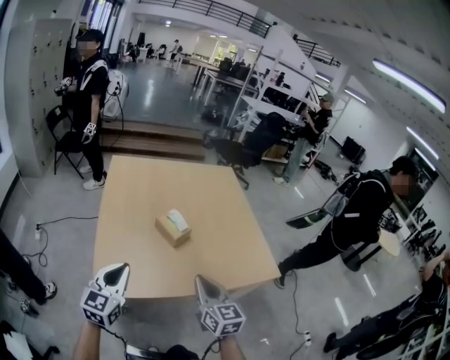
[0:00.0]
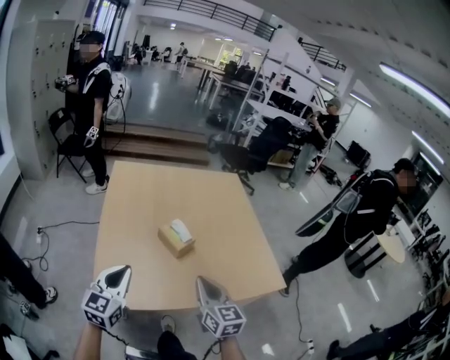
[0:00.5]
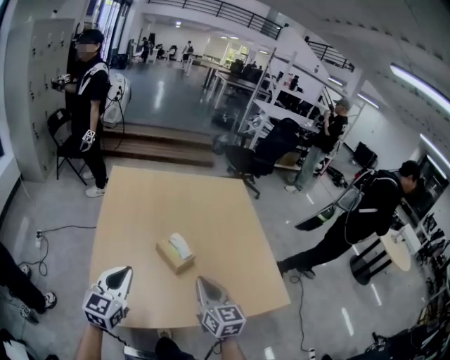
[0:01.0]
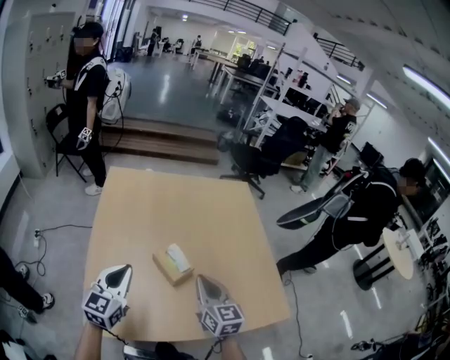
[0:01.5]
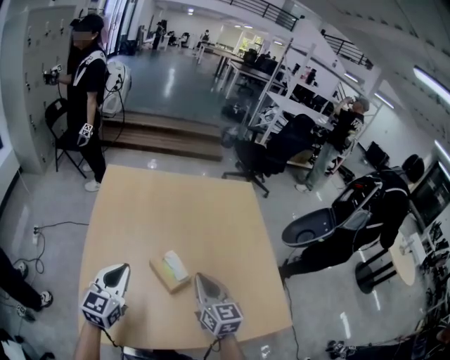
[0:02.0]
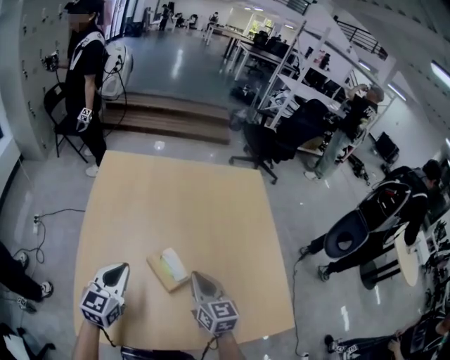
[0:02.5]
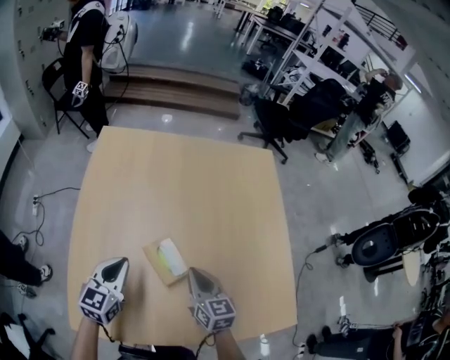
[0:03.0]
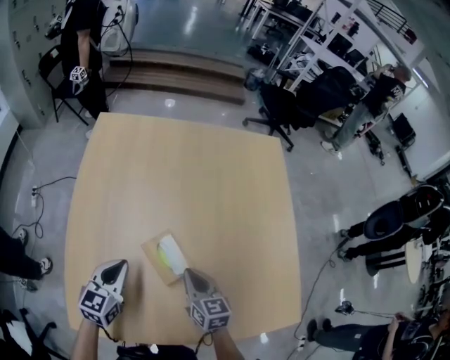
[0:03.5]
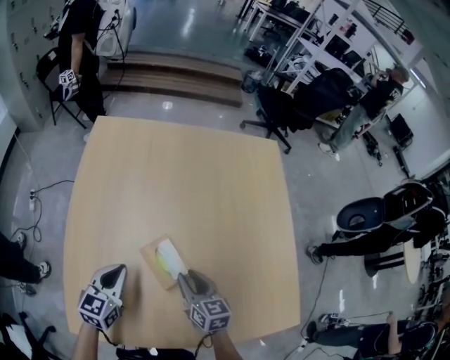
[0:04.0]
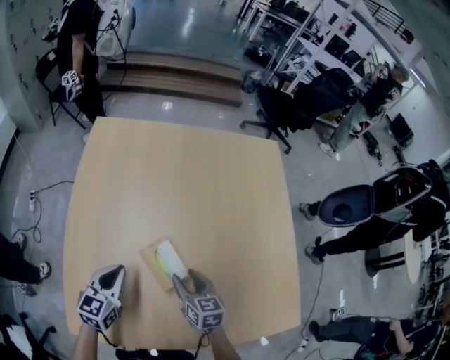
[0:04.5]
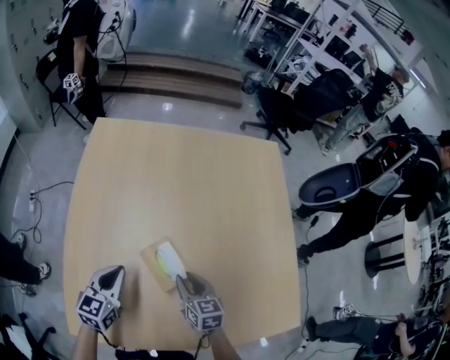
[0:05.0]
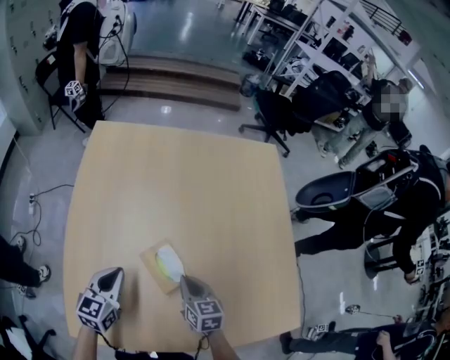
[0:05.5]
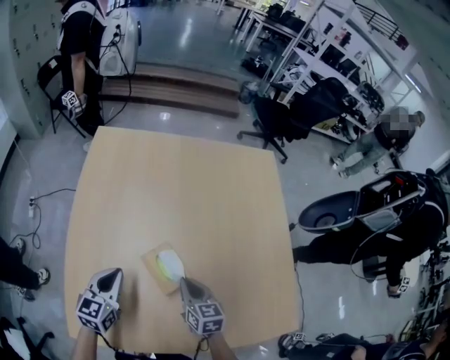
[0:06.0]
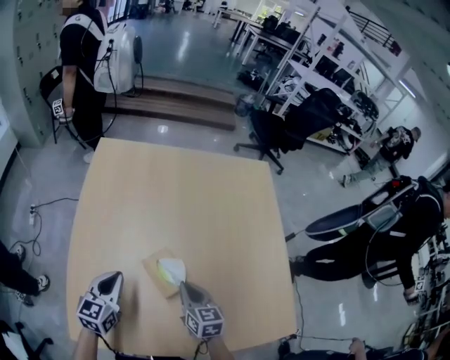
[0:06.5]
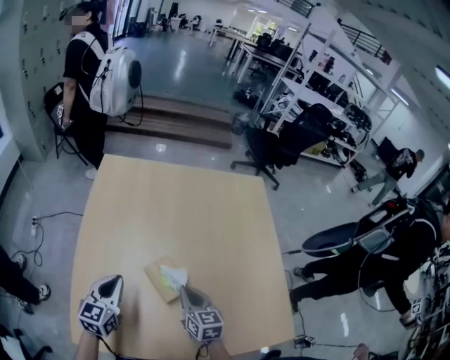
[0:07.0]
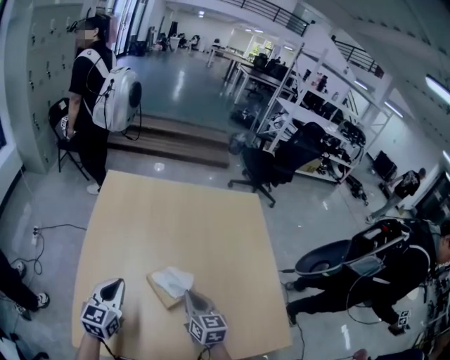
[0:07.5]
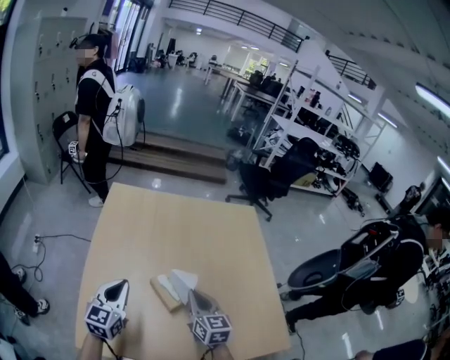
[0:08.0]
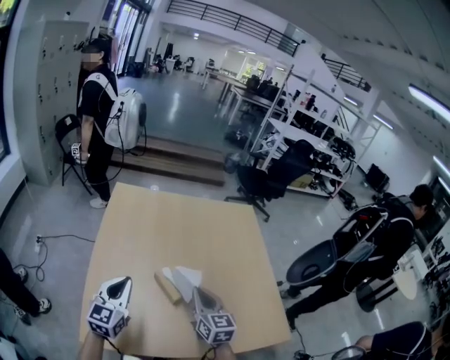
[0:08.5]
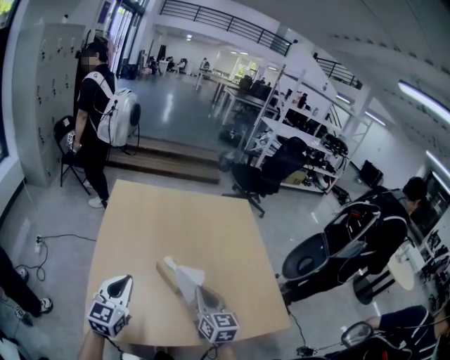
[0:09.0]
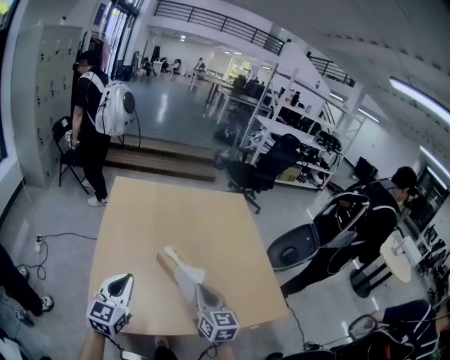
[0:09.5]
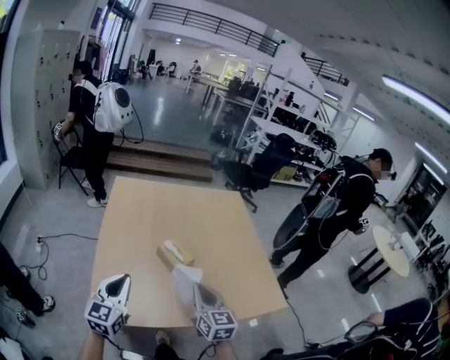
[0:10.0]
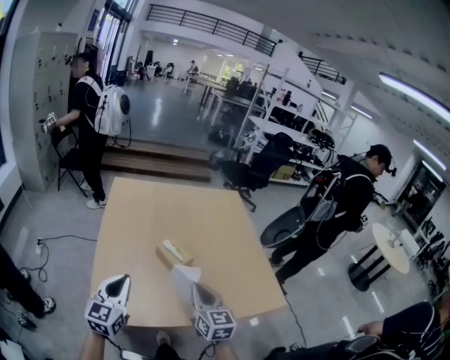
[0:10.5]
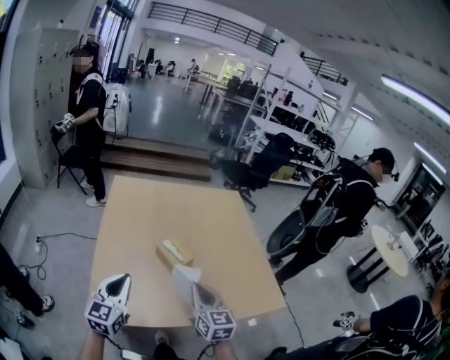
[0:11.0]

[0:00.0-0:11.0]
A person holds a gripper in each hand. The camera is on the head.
0:00.0 to 0:02.0: The grippers both shift forward by about 25 cm.
0:02.0 to 0:03.5: The grippers both shift downward by about 15 cm.
0:03.5 to 0:05.5: The right gripper opens, then closes again.
0:05.5 to 0:07.5: The two grippers go some 10 cm upward.
0:07.5 to 0:09.0: Both grippers travel together backward and upward, some 15 cm.
0:09.0 to 0:11.0: The grippers both shift backward by approximately 10 cm.

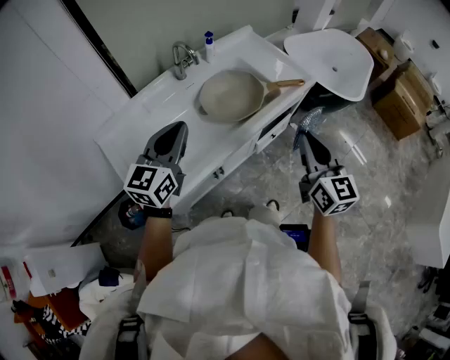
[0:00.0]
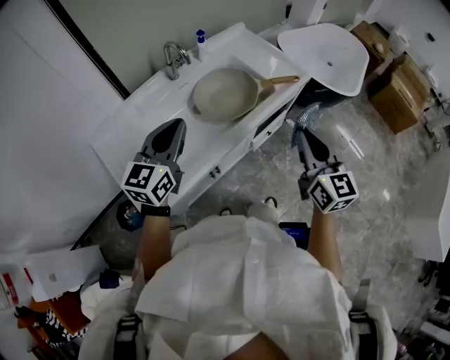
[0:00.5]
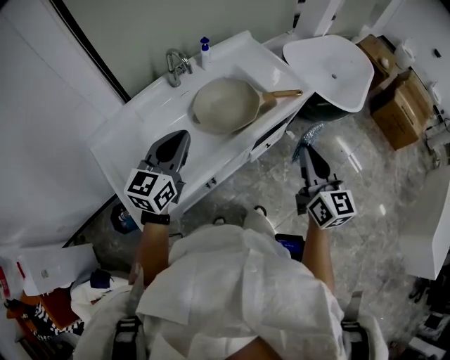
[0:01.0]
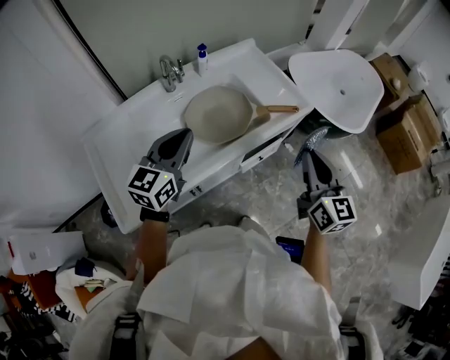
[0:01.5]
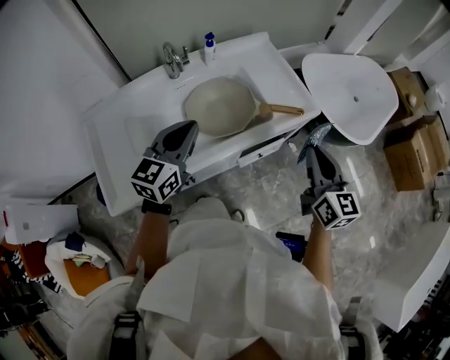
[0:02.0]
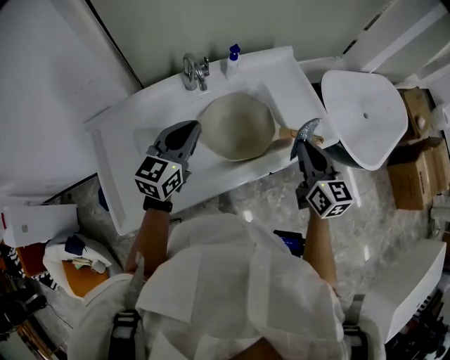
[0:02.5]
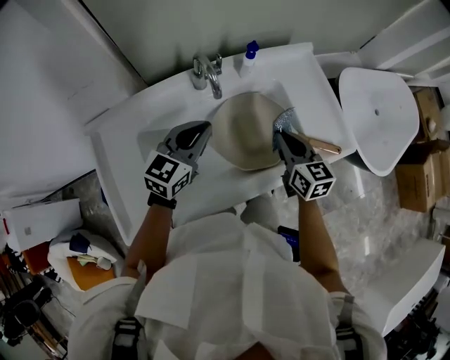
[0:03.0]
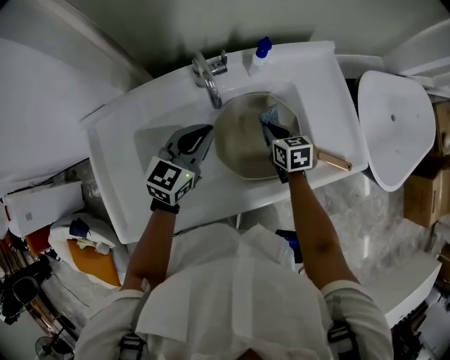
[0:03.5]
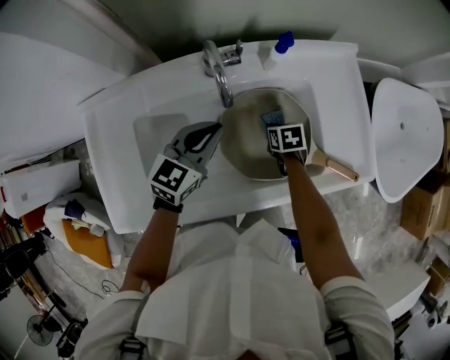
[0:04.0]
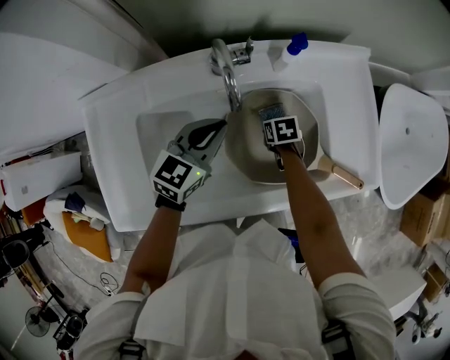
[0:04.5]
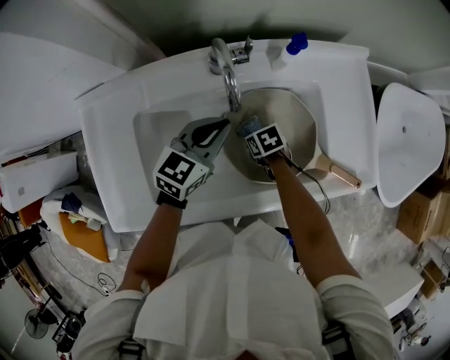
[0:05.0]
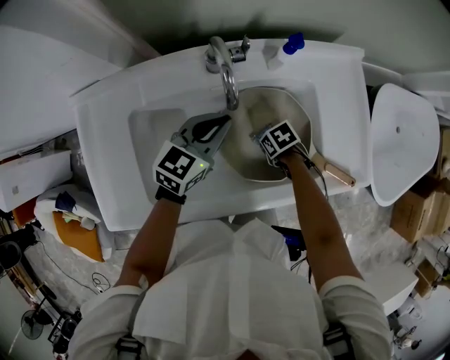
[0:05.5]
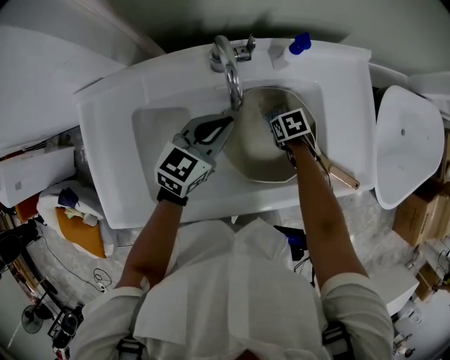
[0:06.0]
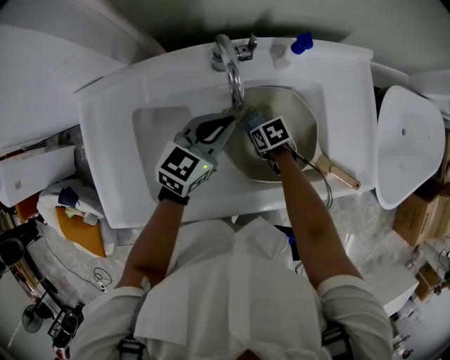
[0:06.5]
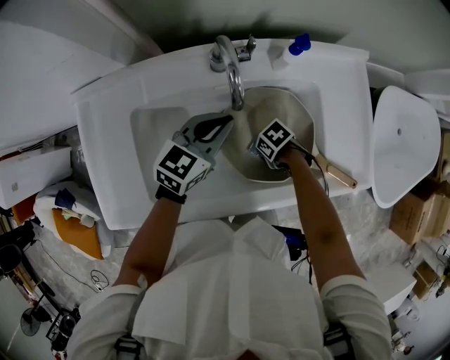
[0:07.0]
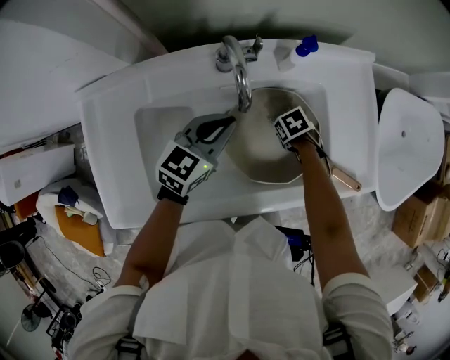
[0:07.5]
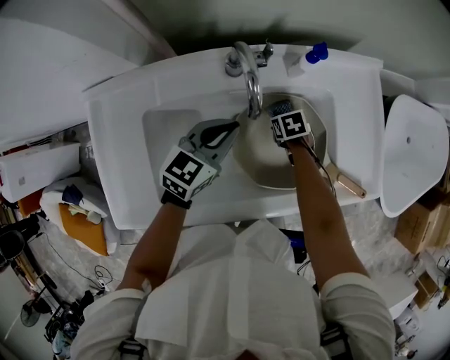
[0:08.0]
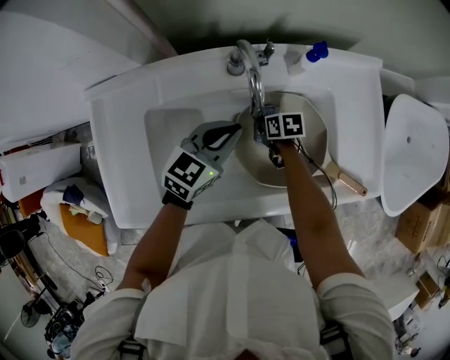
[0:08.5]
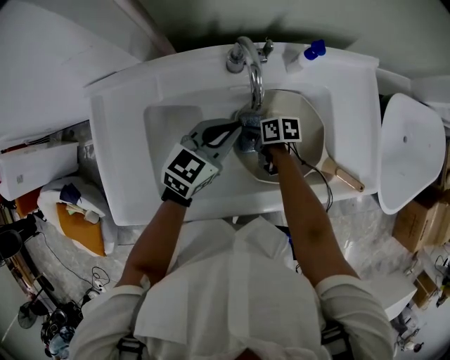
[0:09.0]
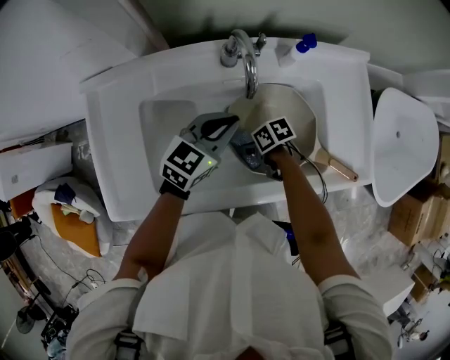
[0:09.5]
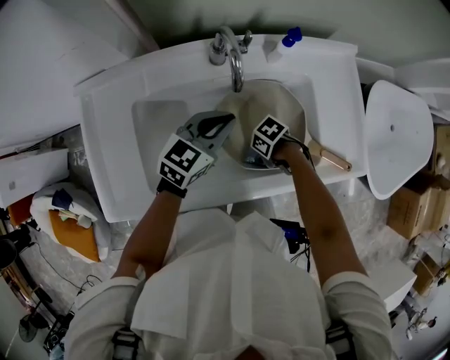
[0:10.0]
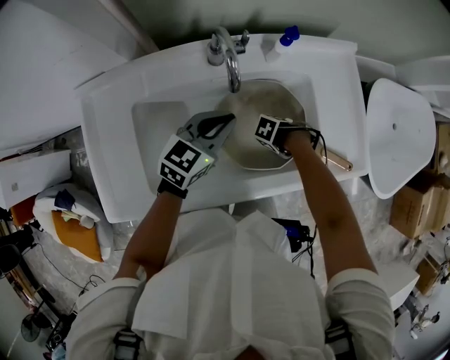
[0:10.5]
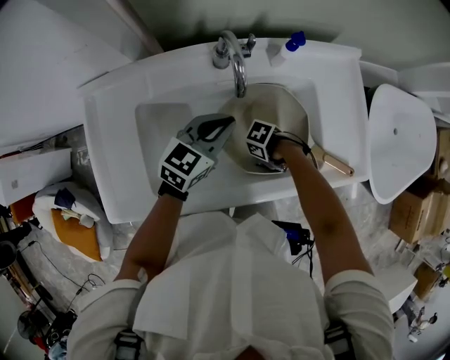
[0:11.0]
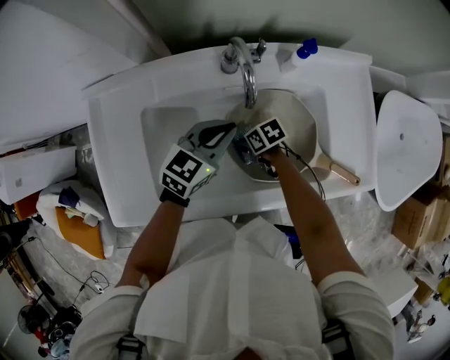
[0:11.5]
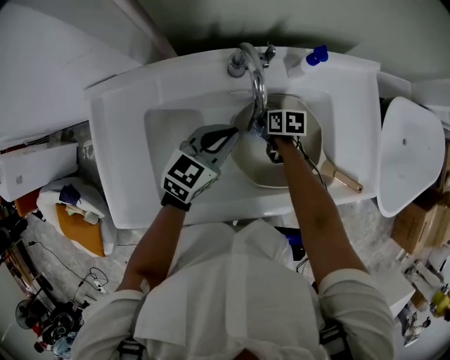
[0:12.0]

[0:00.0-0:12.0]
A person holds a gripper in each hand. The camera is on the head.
0:00.0 to 0:02.0: The left gripper heads to the right and forward, covering approximately 15 cm. The right gripper goes some 20 cm forward and to the right.
0:02.0 to 0:04.0: The right gripper goes some 50 cm downward, forward and to the left, and points its fingers about 60 degrees further downward. The left gripper travels forward and downward by approximately 25 cm.
0:08.0 to 0:10.0: The right gripper moves some 20 cm, and turns by roughly 40 degrees.
0:10.0 to 0:12.0: The right gripper ends up about 20 cm from where it was, and turns by approximately 60 degrees.

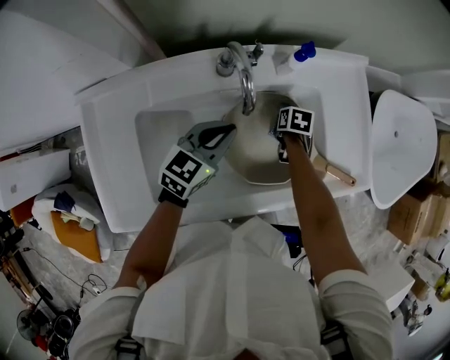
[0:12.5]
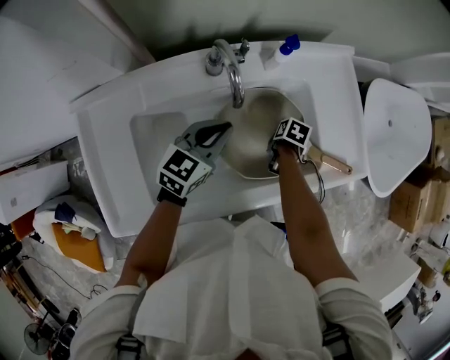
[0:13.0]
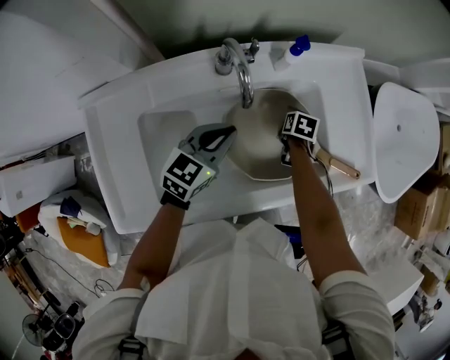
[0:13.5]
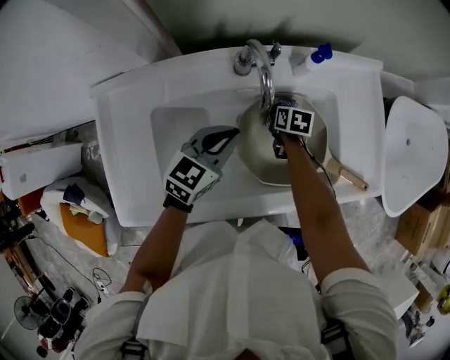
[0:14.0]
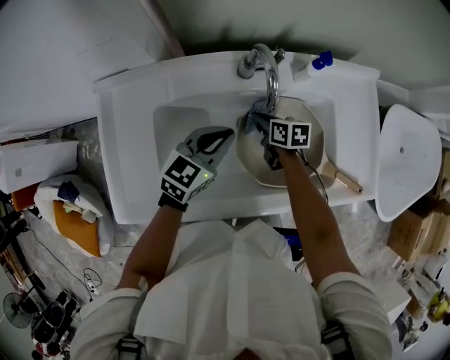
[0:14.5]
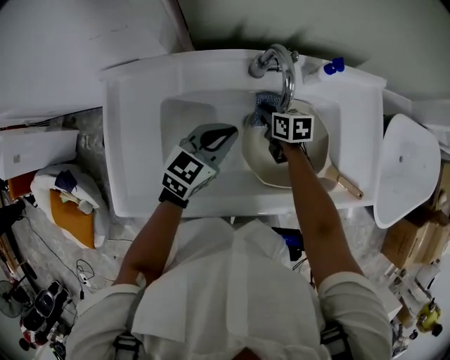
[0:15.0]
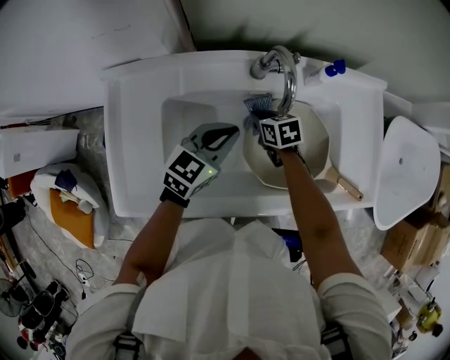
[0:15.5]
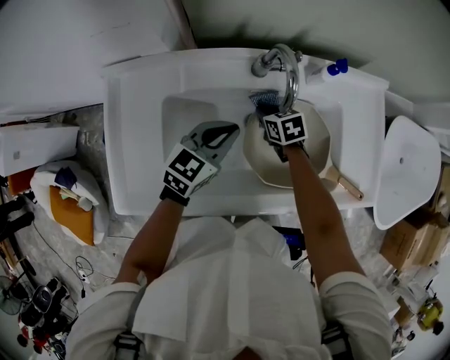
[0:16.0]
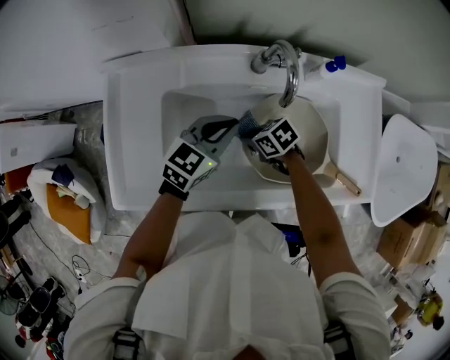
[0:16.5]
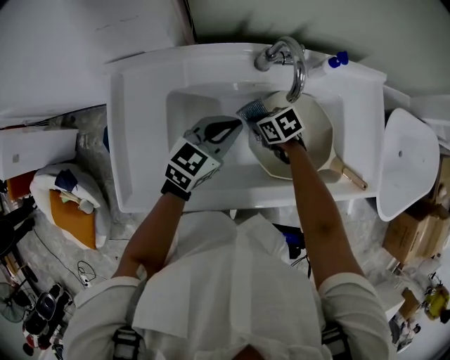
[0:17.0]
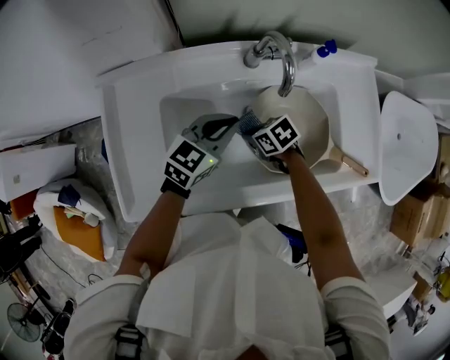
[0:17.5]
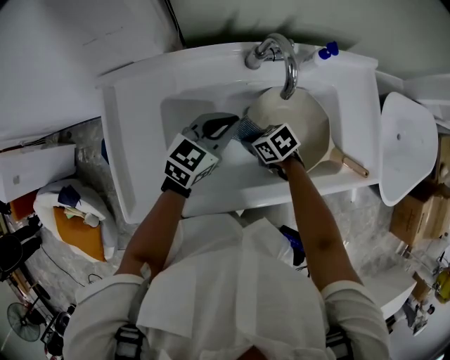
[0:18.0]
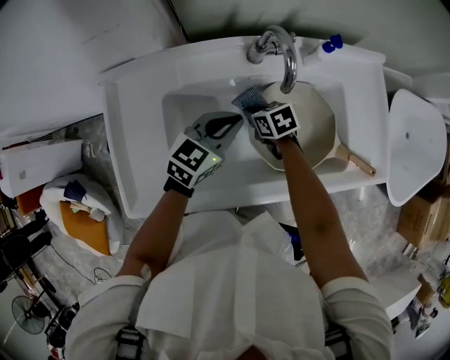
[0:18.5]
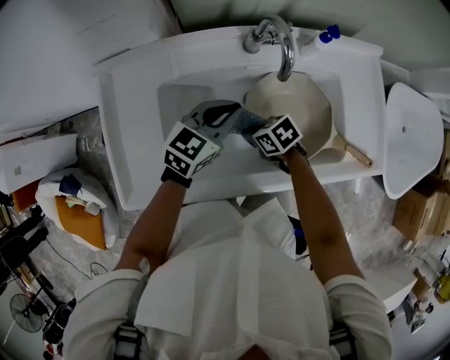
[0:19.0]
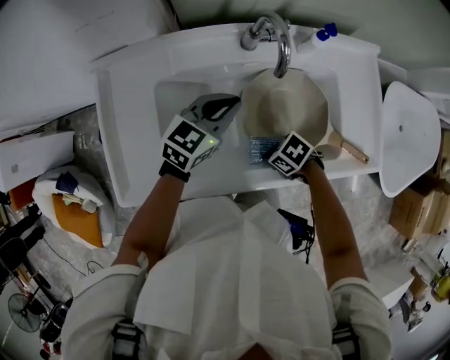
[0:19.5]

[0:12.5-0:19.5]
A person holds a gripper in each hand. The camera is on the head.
0:12.5 to 0:14.5: The right gripper moves approximately 15 cm, and turns by approximately 30 degrees. Meanwhile the left gripper ends up about 5 cm from where it was.
0:14.5 to 0:16.0: The right gripper turns by about 30 degrees.
0:16.0 to 0:17.5: The right gripper shifts by about 15 cm, and swivels approximately 20 degrees.
0:17.5 to 0:19.5: The right gripper shifts by some 15 cm, and turns by some 20 degrees.
